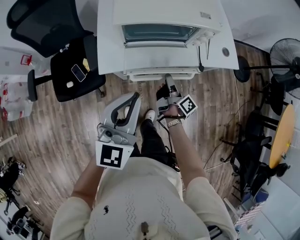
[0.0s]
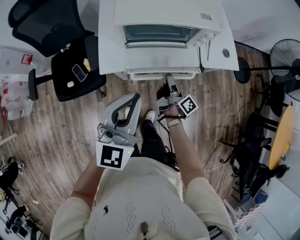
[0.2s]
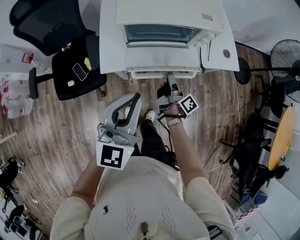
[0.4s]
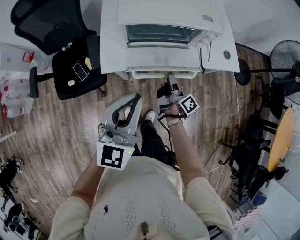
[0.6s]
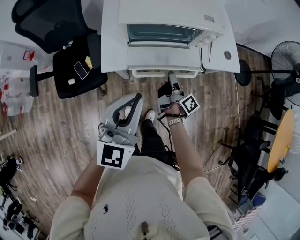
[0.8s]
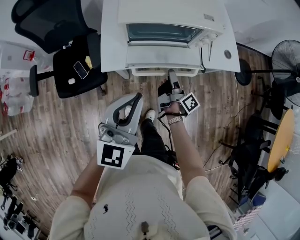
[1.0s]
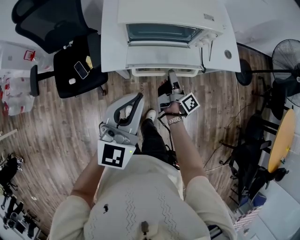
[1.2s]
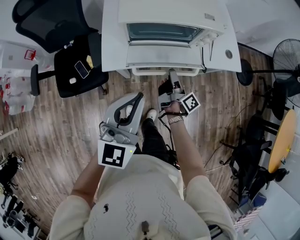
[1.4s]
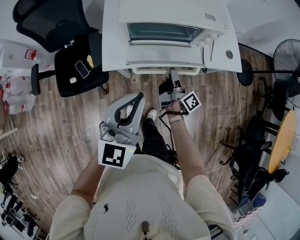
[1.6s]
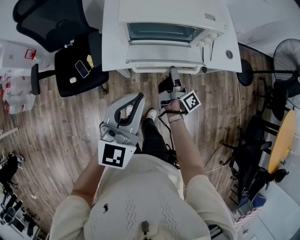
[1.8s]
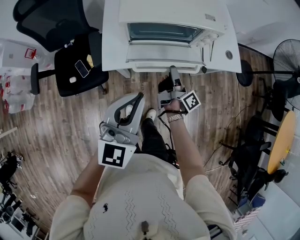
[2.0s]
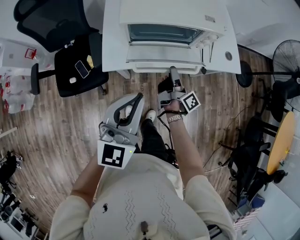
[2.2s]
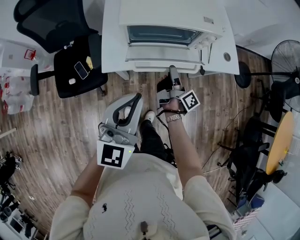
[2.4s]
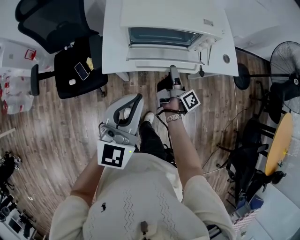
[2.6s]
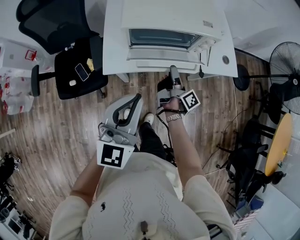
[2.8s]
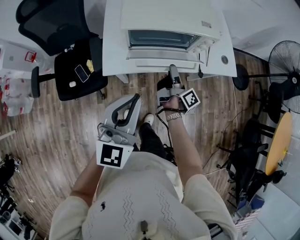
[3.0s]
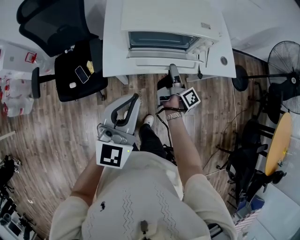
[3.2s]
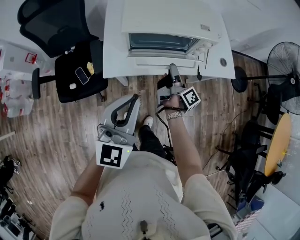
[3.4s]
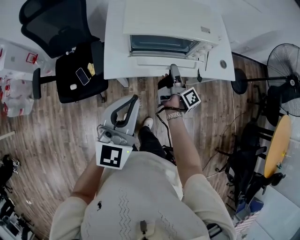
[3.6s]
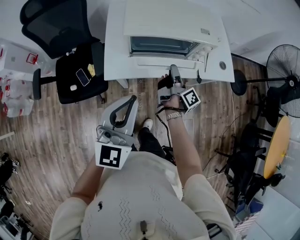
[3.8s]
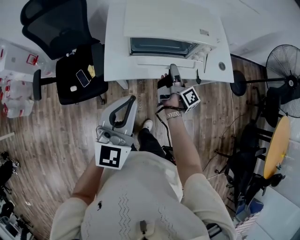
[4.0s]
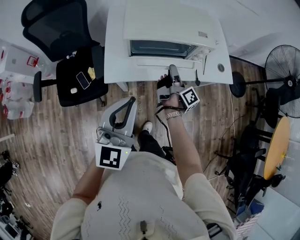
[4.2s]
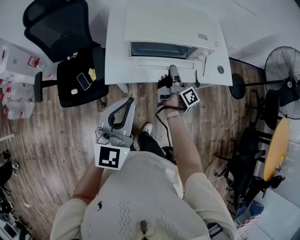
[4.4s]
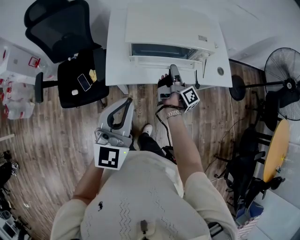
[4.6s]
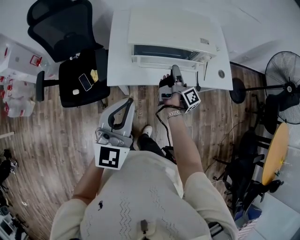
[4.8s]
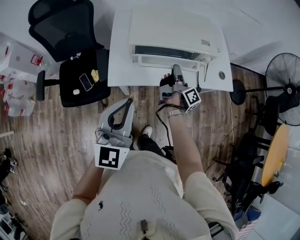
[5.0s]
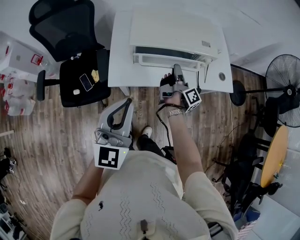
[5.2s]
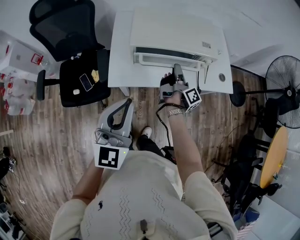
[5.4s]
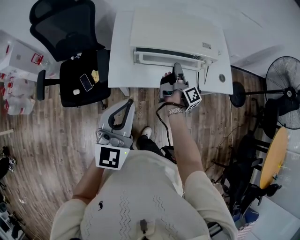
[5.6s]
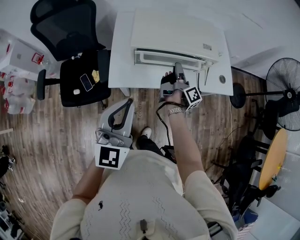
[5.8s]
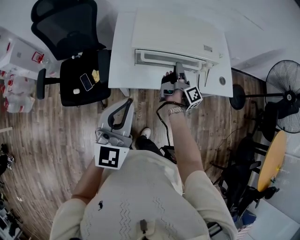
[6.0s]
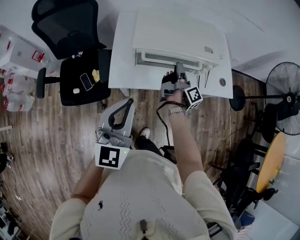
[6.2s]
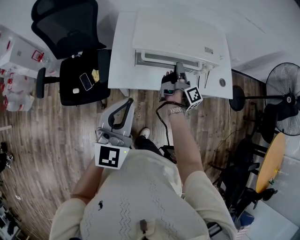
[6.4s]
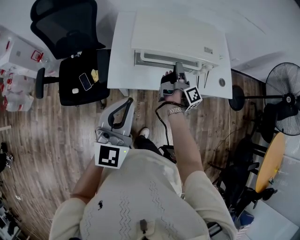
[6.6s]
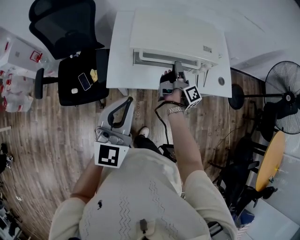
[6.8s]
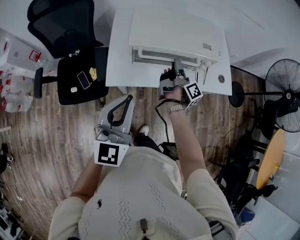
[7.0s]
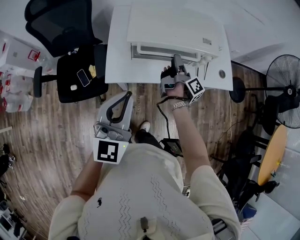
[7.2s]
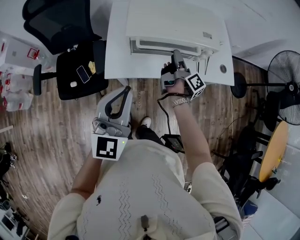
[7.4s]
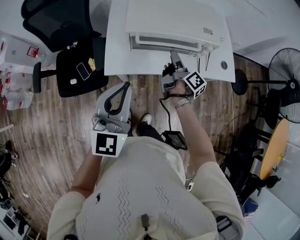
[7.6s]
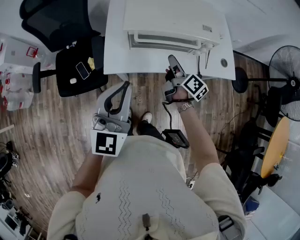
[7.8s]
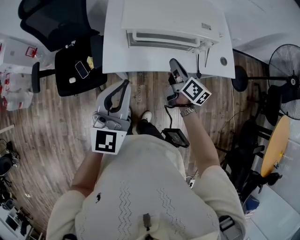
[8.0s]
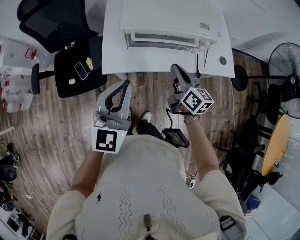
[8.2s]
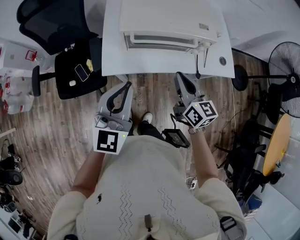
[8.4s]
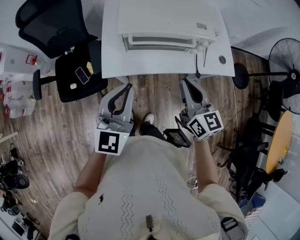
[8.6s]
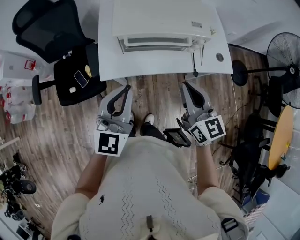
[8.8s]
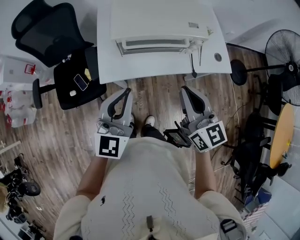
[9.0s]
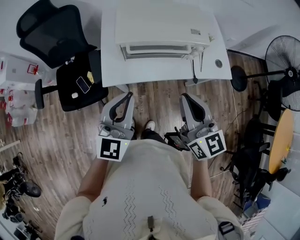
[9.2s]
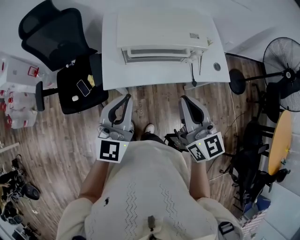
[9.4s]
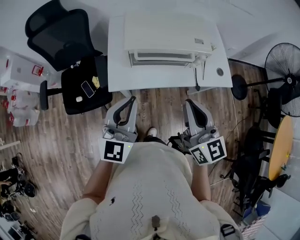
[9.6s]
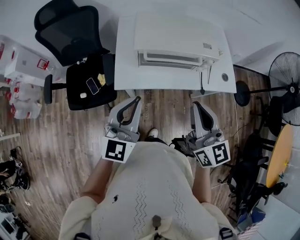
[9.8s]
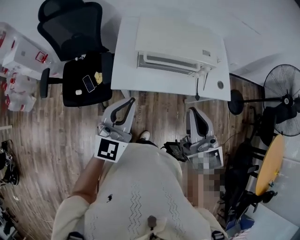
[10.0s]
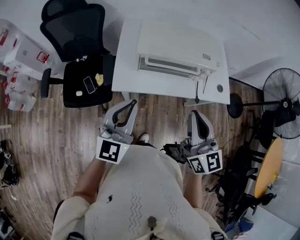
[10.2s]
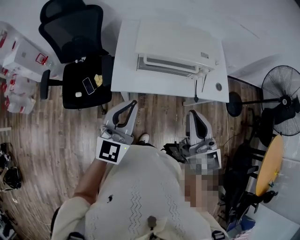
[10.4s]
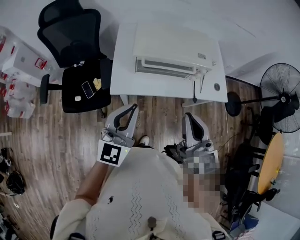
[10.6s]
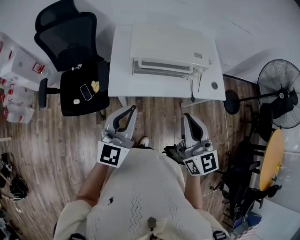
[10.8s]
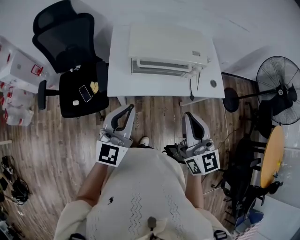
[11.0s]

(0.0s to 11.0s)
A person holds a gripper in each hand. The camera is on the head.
0.0s - 1.6s: The grippers make only small movements.
1.6s - 3.2s: The right gripper changes place by about 5 cm.
3.2s - 4.8s: The right gripper moves approximately 5 cm.
4.8s - 6.2s: There are only small adjustments of the grippers.
6.2s - 7.8s: The right gripper travels backward by approximately 5 cm, swivels approximately 40 degrees, and opens and closes again.
7.8s - 9.4s: The right gripper shifts approximately 25 cm upward and backward, and twists approximately 50 degrees counterclockwise, seen from behind.
9.4s - 11.0s: The right gripper changes place by some 5 cm.

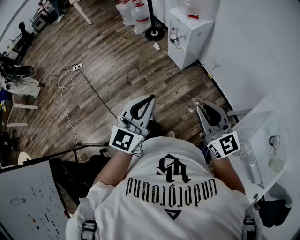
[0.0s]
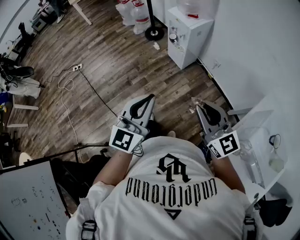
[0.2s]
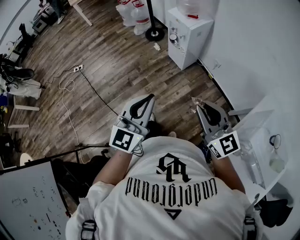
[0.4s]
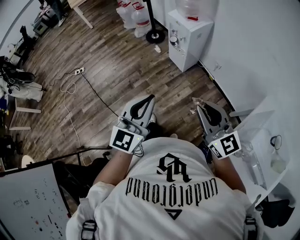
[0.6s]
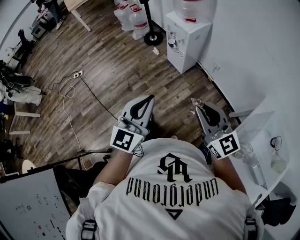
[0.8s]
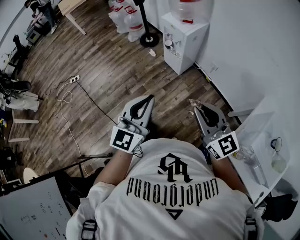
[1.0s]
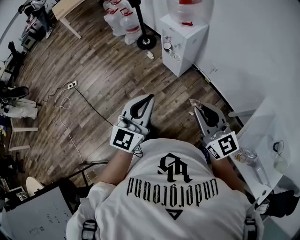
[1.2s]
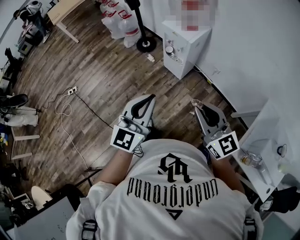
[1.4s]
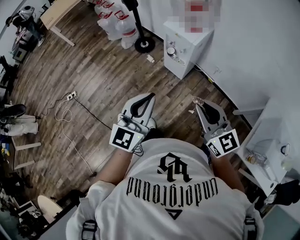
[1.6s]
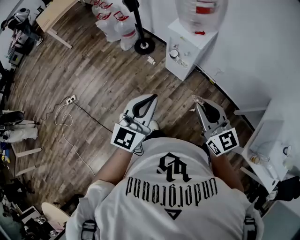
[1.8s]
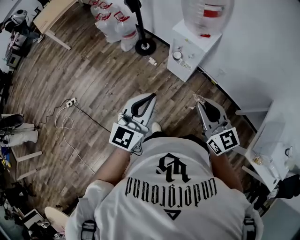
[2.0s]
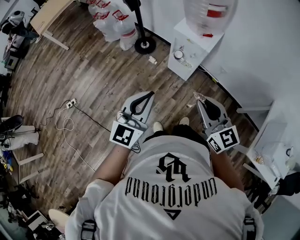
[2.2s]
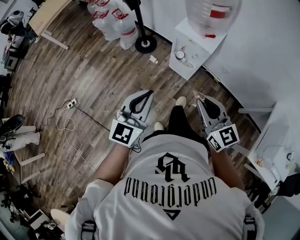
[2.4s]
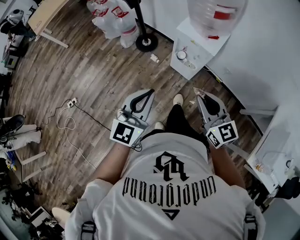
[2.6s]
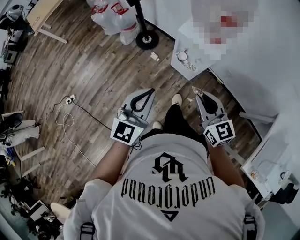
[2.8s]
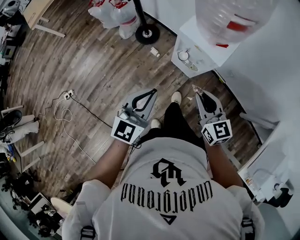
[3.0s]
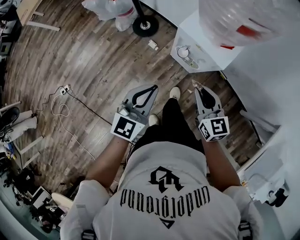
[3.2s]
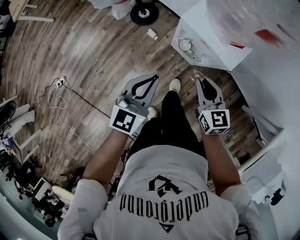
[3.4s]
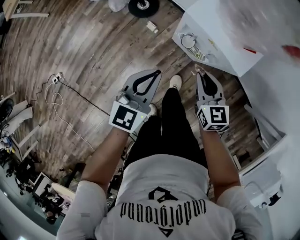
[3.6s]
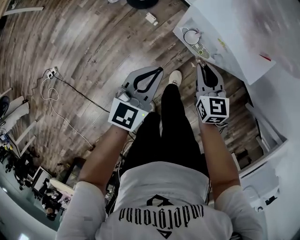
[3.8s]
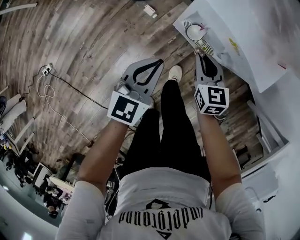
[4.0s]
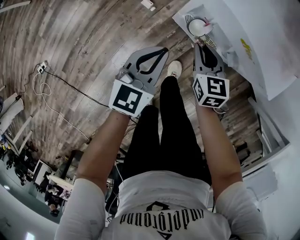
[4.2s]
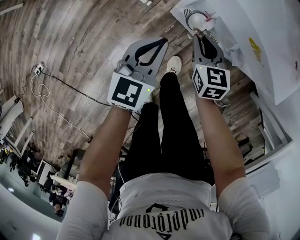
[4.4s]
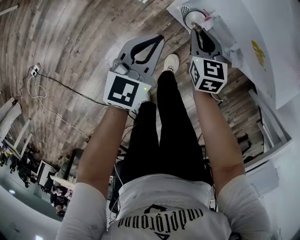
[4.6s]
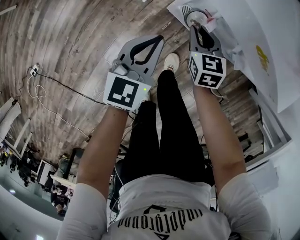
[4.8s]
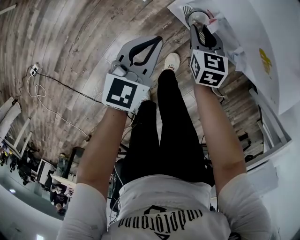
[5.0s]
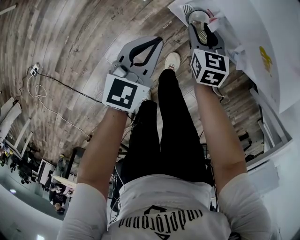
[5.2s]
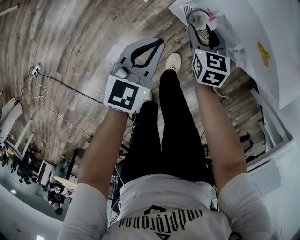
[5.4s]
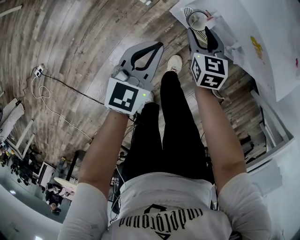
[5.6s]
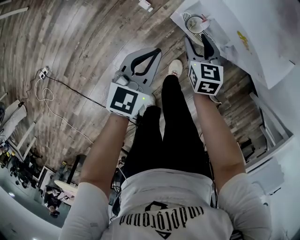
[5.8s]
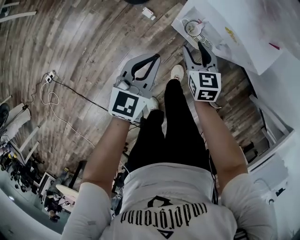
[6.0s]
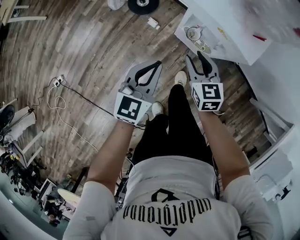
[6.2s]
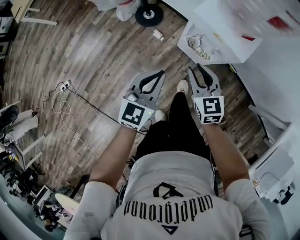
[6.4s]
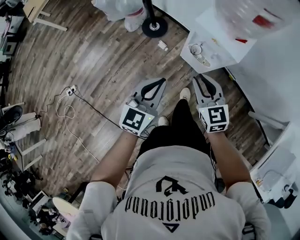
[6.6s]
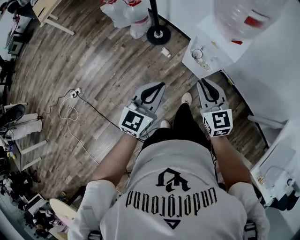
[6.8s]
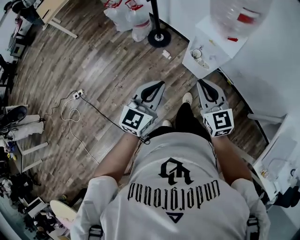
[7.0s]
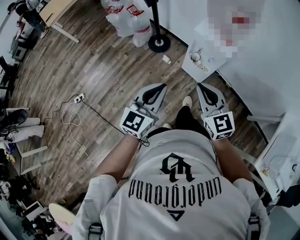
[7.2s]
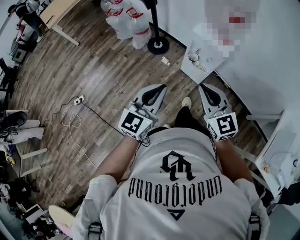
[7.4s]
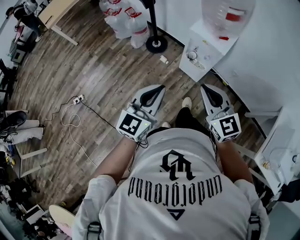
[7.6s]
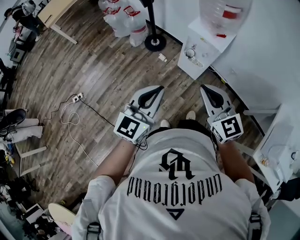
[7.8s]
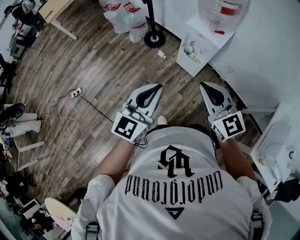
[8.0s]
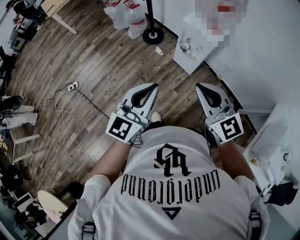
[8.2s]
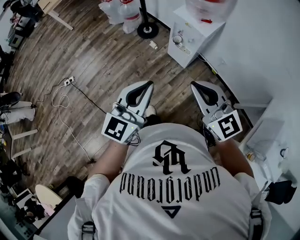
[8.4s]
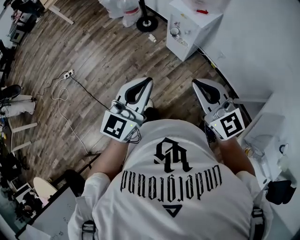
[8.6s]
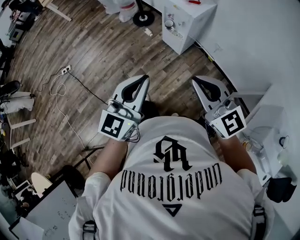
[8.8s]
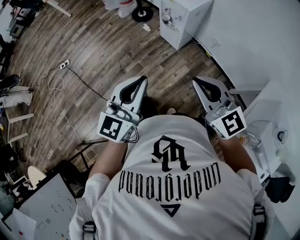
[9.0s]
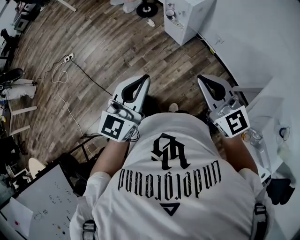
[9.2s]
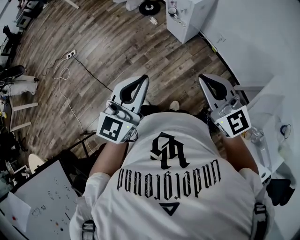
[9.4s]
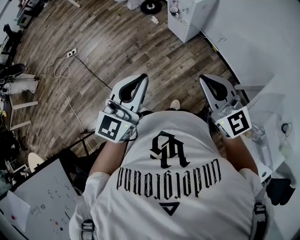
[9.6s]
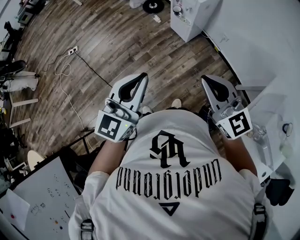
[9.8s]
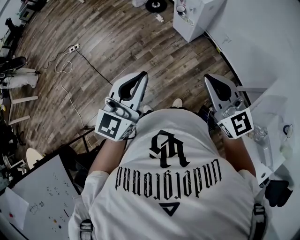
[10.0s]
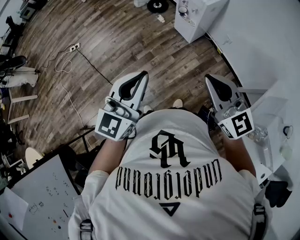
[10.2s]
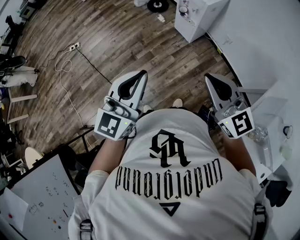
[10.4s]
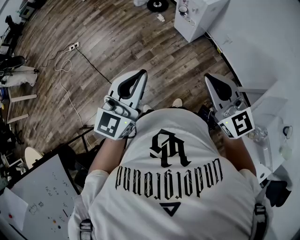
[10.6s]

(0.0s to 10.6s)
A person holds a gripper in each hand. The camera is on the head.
0.0s - 1.6s: The two grippers go approximately 25 cm forward and to the left.
1.6s - 3.0s: The two grippers go some 35 cm forward and downward.
3.0s - 4.6s: Both grippers move downward and forward, about 50 cm. The right gripper turns by approximately 30 degrees.
4.6s - 6.0s: The two grippers go approximately 15 cm upward and backward. The right gripper opens.
6.0s - 7.6s: Both grippers travel together upward and backward, approximately 50 cm. The right gripper turns by roughly 30 degrees, and closes up. Meanwhile the left gripper swivels some 20 degrees.
7.6s - 9.0s: Both grippers move backward and to the right, approximately 30 cm.
9.0s - 10.6s: The left gripper is displaced backward and to the left by approximately 10 cm. Meanwhile the right gripper heads backward, covering about 5 cm.

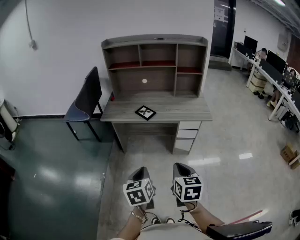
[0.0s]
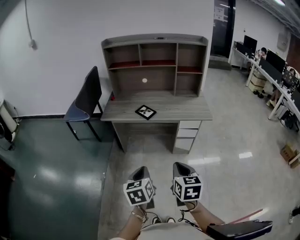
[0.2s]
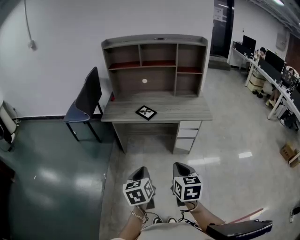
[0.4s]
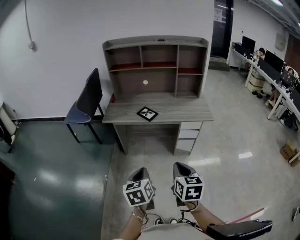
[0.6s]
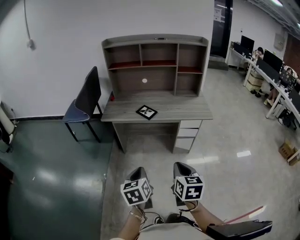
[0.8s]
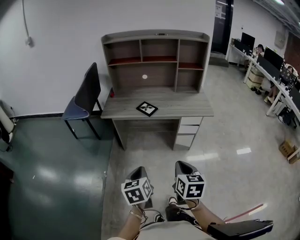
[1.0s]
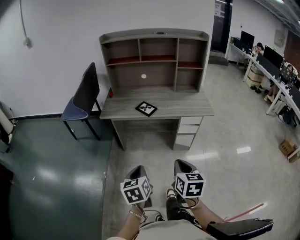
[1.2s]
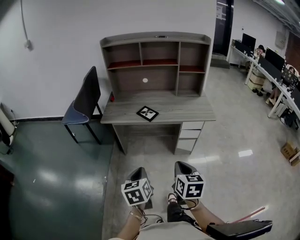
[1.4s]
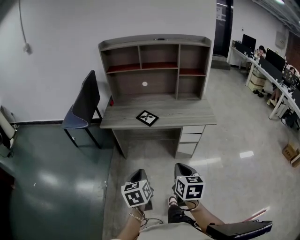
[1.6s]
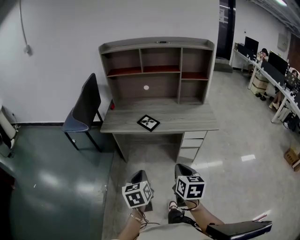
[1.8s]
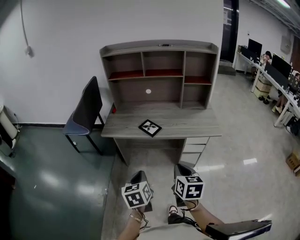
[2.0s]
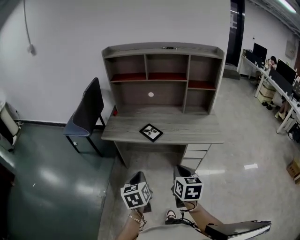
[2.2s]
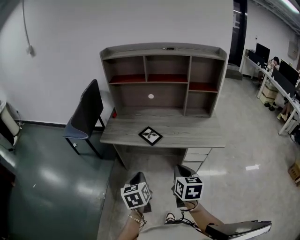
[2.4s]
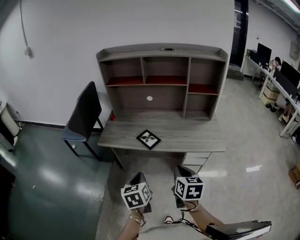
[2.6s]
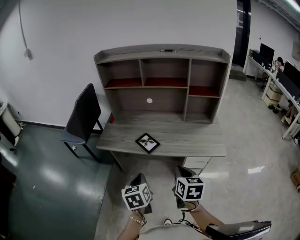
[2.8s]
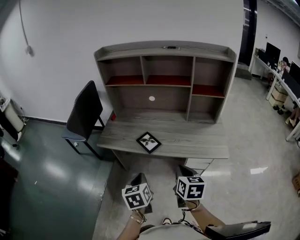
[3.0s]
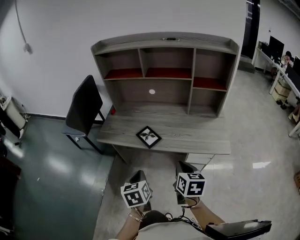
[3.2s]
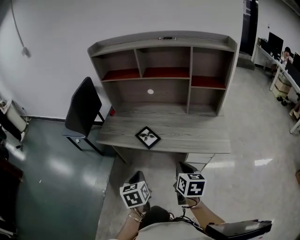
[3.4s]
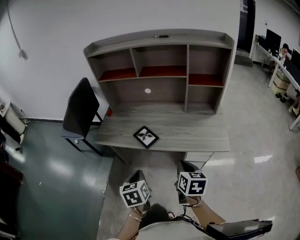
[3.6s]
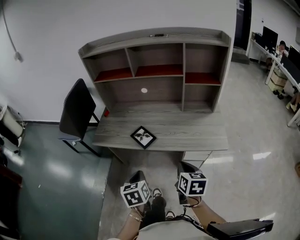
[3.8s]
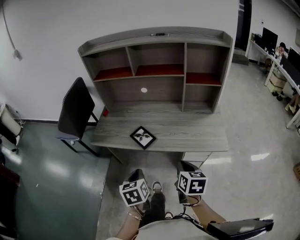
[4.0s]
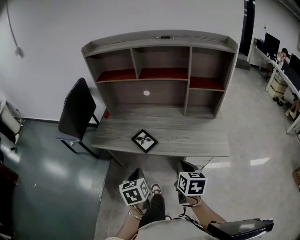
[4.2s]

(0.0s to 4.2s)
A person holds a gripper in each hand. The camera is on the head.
0.0s - 1.4s: The left gripper moves some 5 cm. Meanwhile the right gripper moves approximately 5 cm.
1.4s - 2.8s: Both grippers travel together forward, roughly 25 cm.
2.8s - 4.2s: Both grippers move forward, roughly 5 cm.
